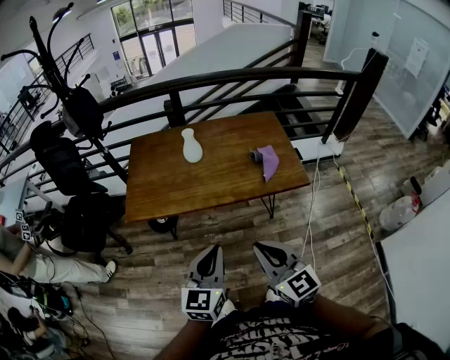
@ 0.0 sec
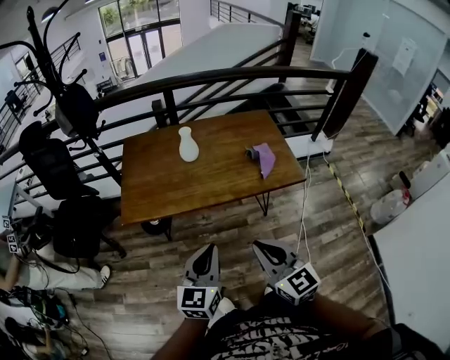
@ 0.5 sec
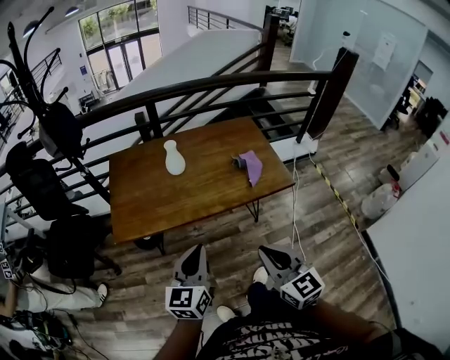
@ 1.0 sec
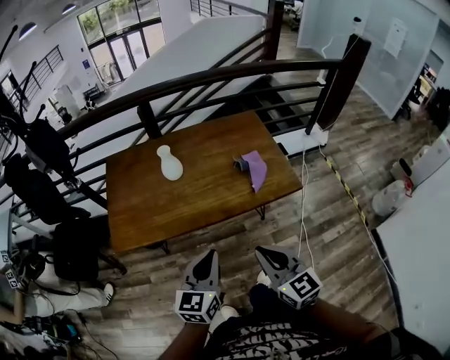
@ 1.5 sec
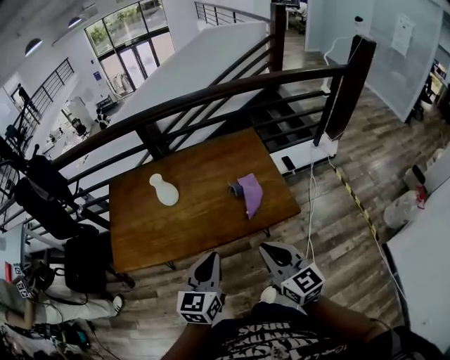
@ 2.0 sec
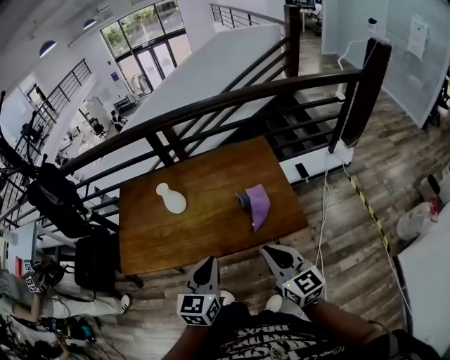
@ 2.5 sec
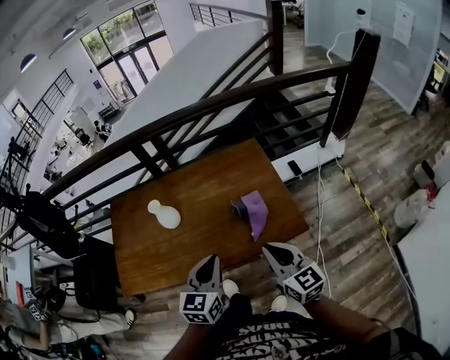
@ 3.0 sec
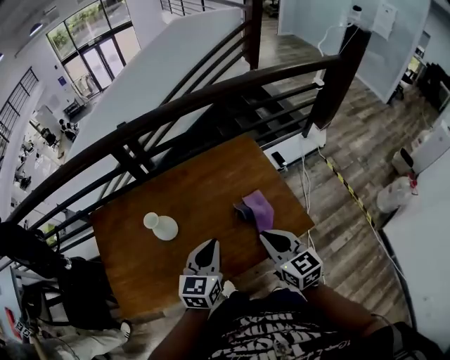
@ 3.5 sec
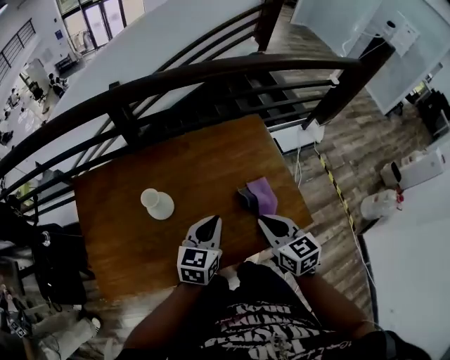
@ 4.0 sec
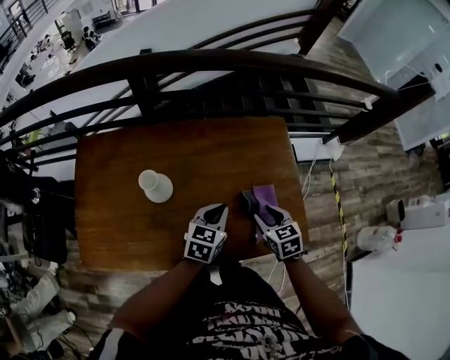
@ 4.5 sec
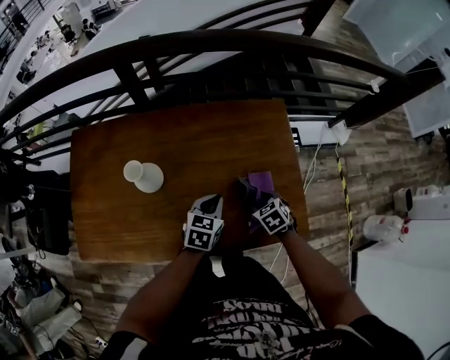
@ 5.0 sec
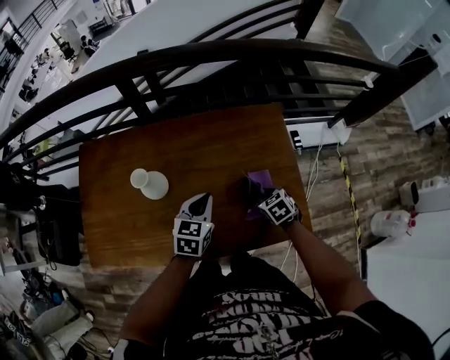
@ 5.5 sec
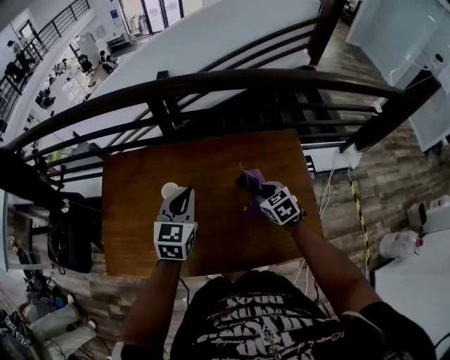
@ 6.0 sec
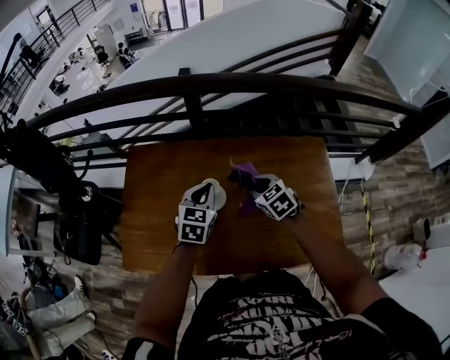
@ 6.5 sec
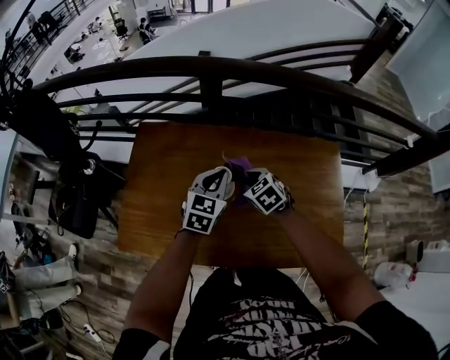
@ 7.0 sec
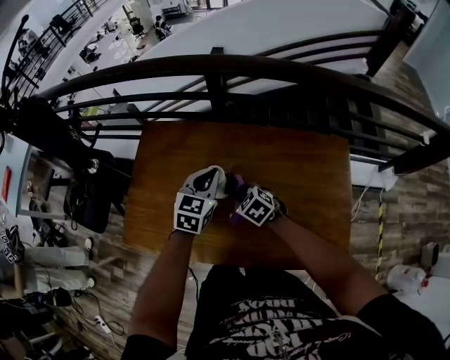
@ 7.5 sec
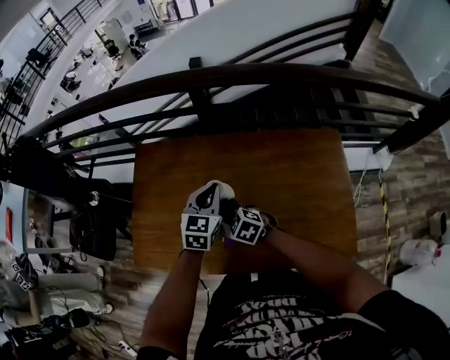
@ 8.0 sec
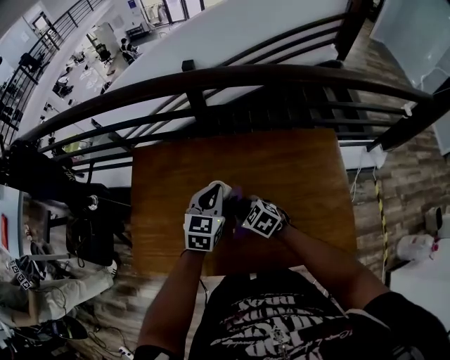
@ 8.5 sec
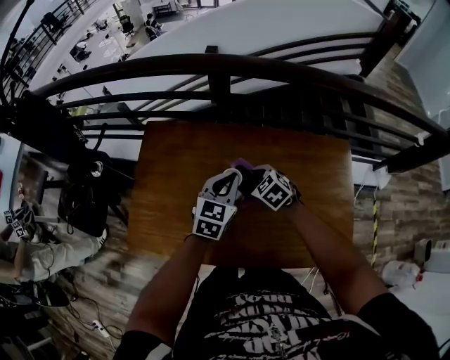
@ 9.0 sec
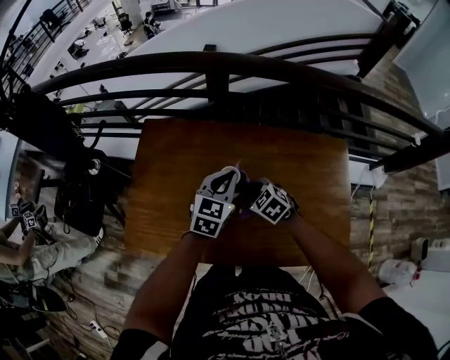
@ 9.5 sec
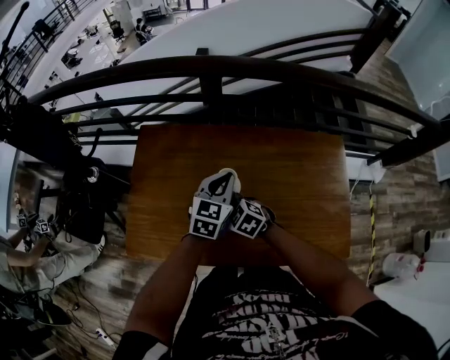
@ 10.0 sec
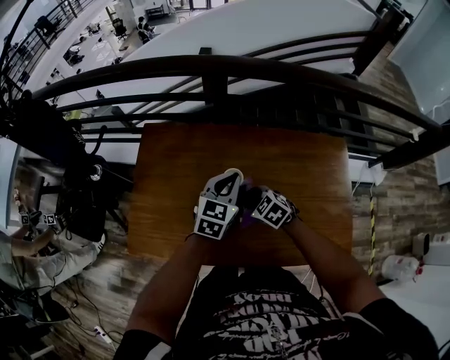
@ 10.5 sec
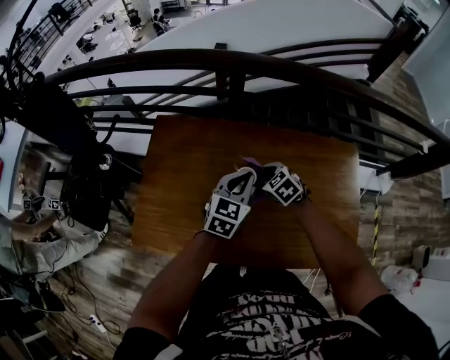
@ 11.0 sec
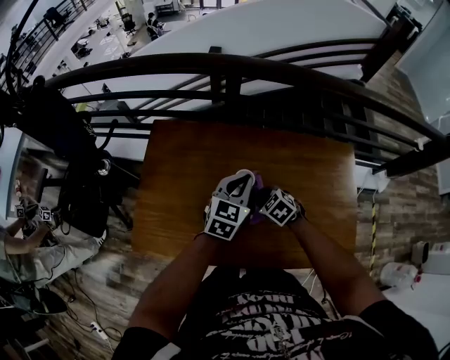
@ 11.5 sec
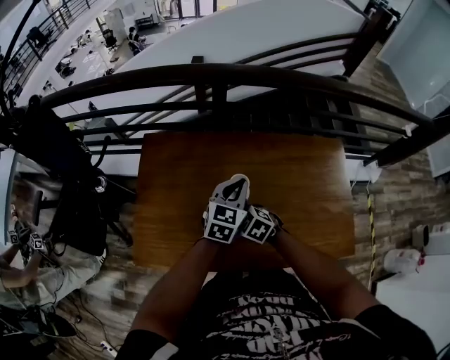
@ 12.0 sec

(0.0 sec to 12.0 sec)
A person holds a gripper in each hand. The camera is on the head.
0.0 sec - 2.0 sec: Both grippers travel together forward and to the right, some 20 cm.
2.0 sec - 4.0 sec: Both grippers move forward, about 25 cm. The right gripper turns by roughly 20 degrees.
4.0 sec - 6.0 sec: The left gripper heads to the left and forward, covering approximately 15 cm, travels downward and back again, approximately 15 cm each way, and swivels some 30 degrees. Meanwhile the right gripper travels forward and downward by approximately 20 cm, turns by about 30 degrees, and opens, then closes again.
6.0 sec - 8.0 sec: The left gripper travels to the left, forward and downward by some 10 cm, while the right gripper heads to the left, covering some 30 cm, and turns by about 40 degrees.
8.0 sec - 10.0 sec: The right gripper moves approximately 10 cm to the right and comes back.
10.0 sec - 12.0 sec: The right gripper reaches about 10 cm to the right, then returns.

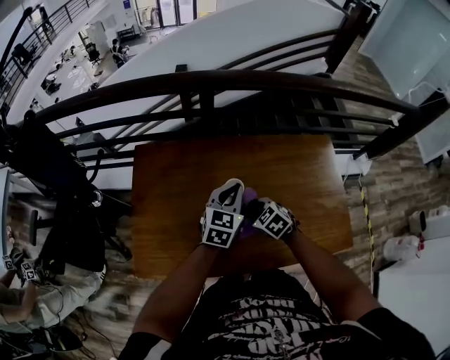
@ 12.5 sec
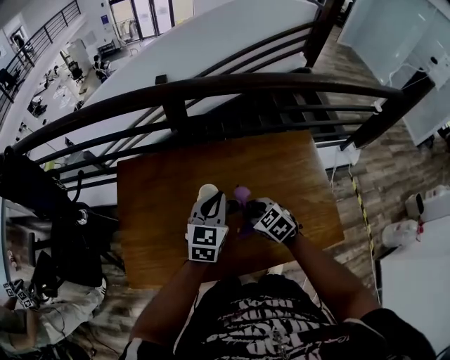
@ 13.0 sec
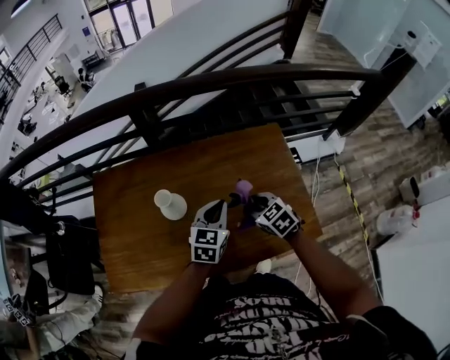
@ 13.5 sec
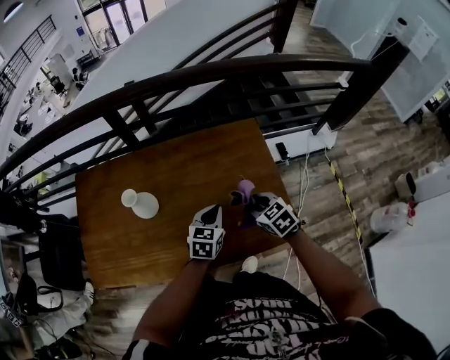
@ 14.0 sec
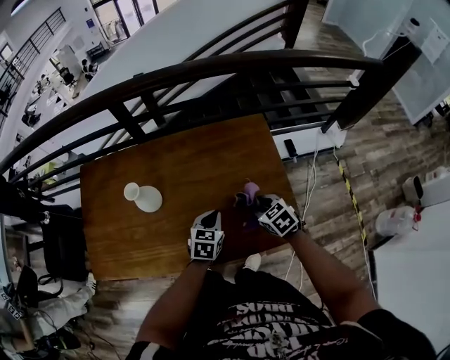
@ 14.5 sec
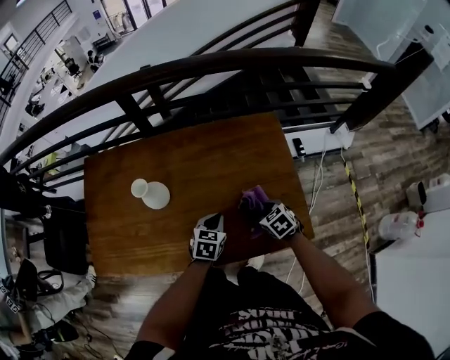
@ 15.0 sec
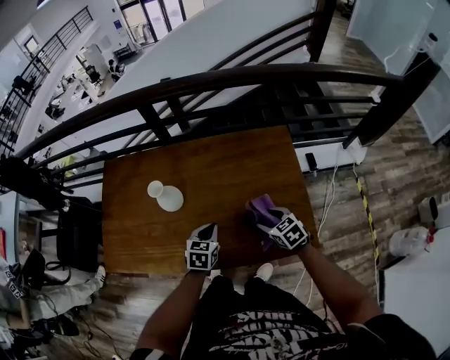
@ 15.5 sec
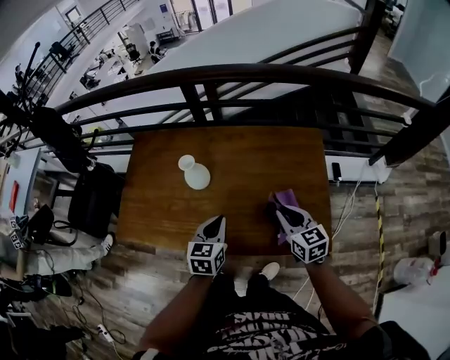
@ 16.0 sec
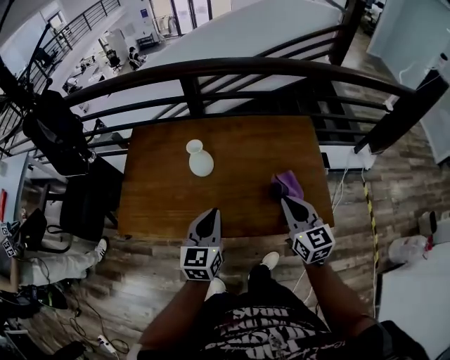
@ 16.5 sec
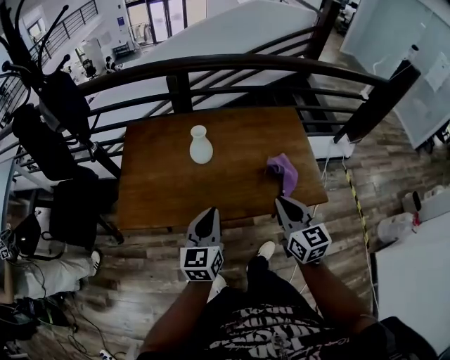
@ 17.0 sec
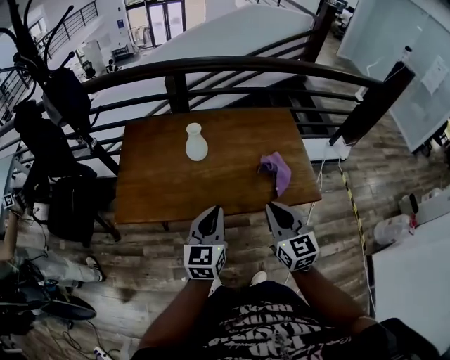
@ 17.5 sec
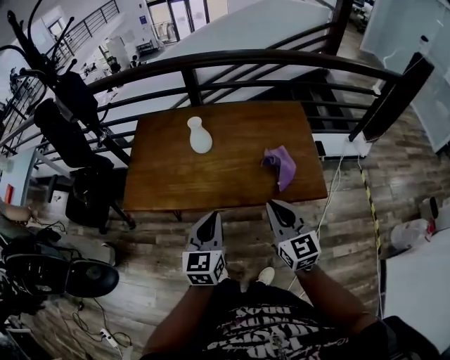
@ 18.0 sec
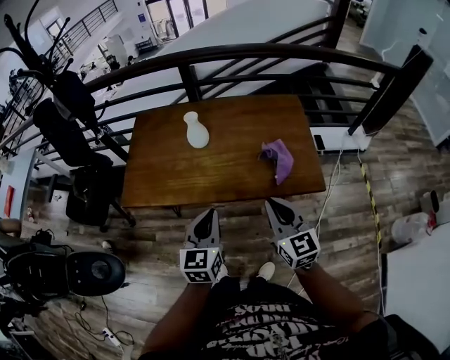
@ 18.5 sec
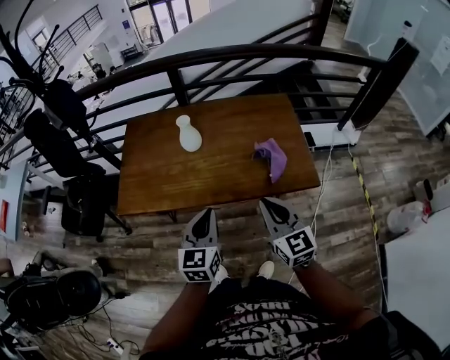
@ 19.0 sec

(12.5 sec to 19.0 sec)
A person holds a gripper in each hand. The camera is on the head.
12.5 sec - 14.5 sec: The right gripper heads to the right, covering about 35 cm, while the left gripper moves to the right, downward and backward, approximately 30 cm.
14.5 sec - 17.0 sec: The left gripper travels to the left, backward and upward by approximately 35 cm, and turns by roughly 30 degrees. The right gripper moves upward, backward and to the left, approximately 35 cm, angles its fingers upward, by about 40 degrees, and opens, then closes once more.
17.0 sec - 19.0 sec: The right gripper goes approximately 10 cm backward; the left gripper is displaced backward and to the right by some 10 cm.

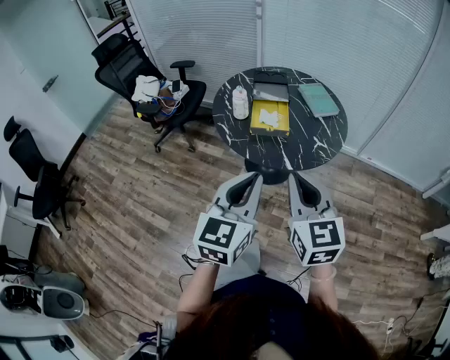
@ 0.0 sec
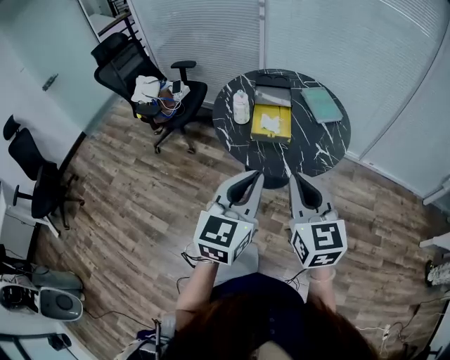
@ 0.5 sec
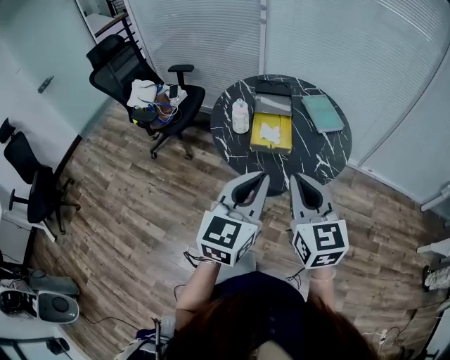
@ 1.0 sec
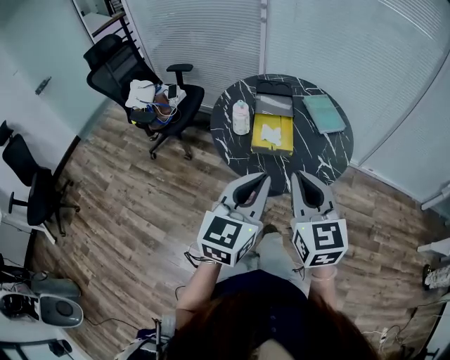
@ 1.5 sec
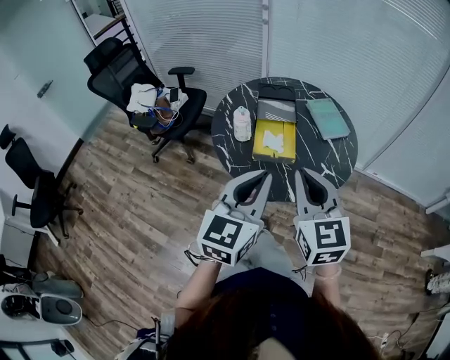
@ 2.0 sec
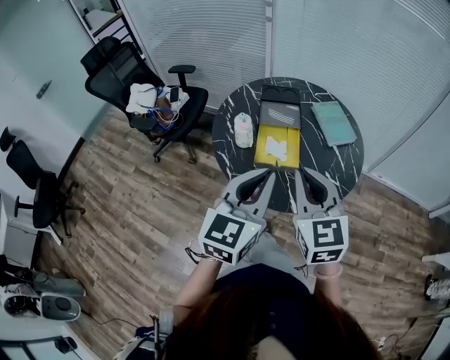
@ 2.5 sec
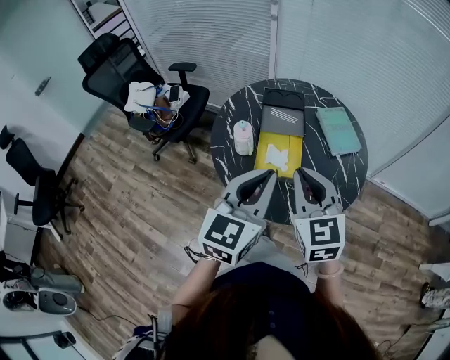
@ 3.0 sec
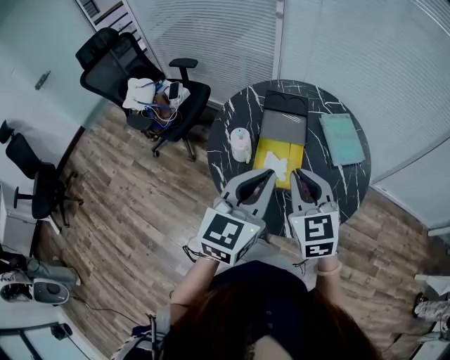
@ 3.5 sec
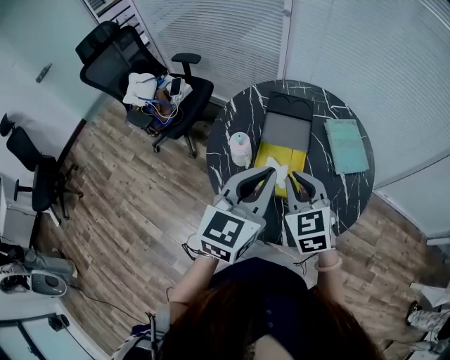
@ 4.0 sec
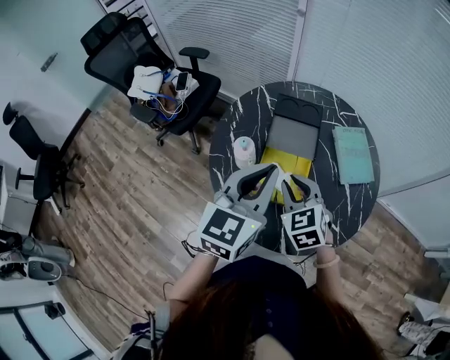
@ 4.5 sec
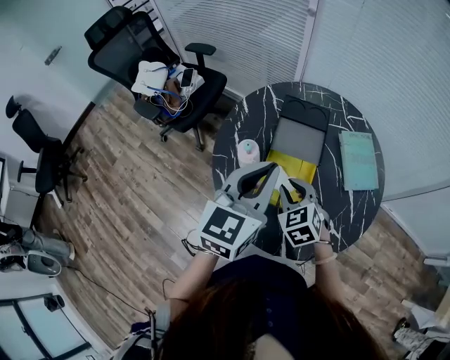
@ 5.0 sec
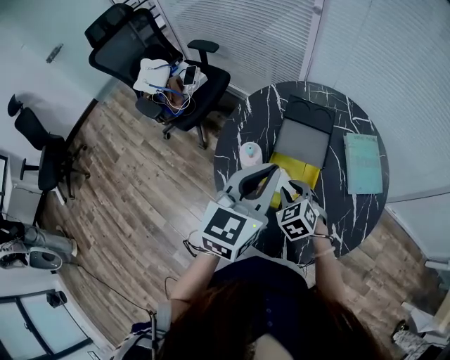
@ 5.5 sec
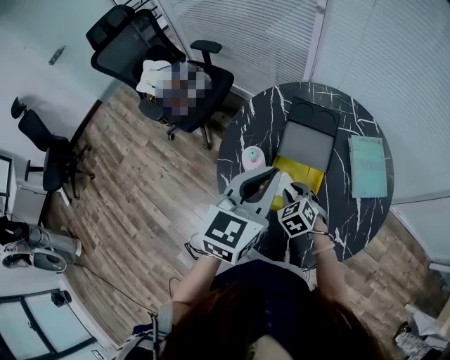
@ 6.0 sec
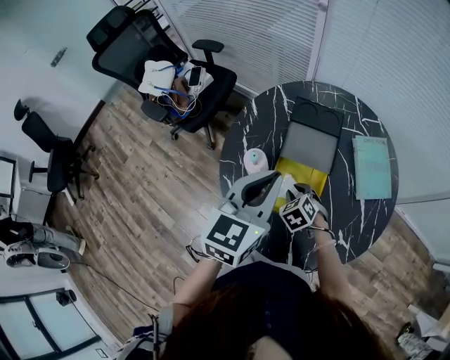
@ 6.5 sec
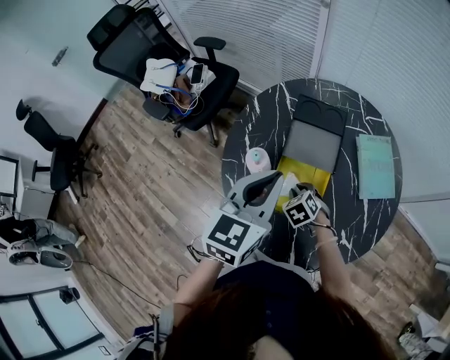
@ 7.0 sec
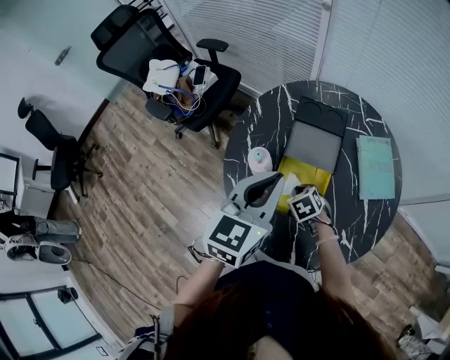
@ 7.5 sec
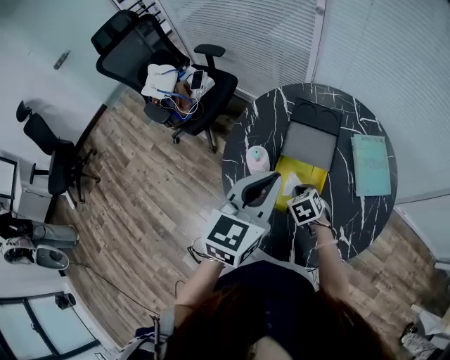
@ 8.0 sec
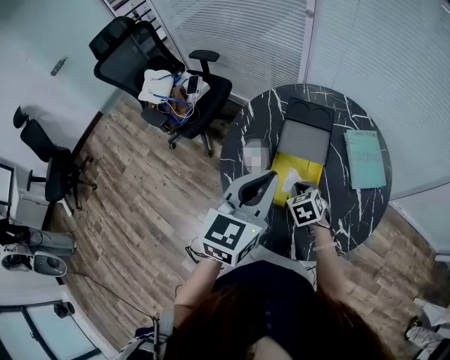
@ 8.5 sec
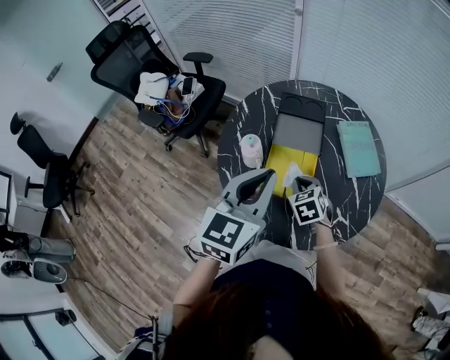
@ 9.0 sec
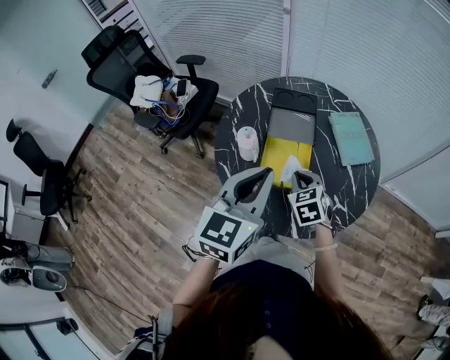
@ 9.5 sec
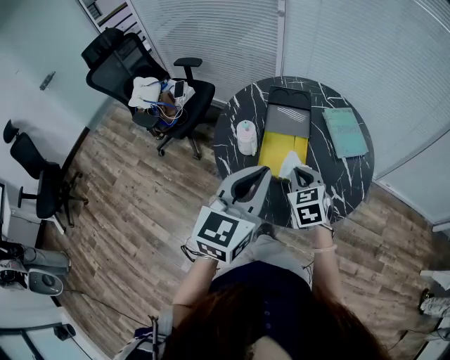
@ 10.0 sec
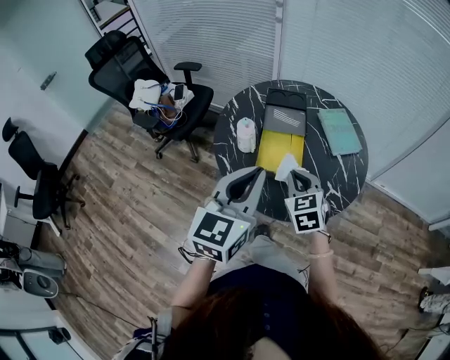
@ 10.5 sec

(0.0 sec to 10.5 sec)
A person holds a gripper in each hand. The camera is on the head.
0.0 sec - 2.0 sec: The grippers both shift forward by approximately 15 cm.
2.0 sec - 4.0 sec: The left gripper shifts approximately 20 cm forward, while the right gripper heads forward and downward, covering roughly 25 cm, and turns by approximately 20 degrees.
4.0 sec - 6.5 sec: The right gripper is displaced downward by some 25 cm, and tips its fingers downward by approximately 30 degrees, while the left gripper is displaced forward by approximately 10 cm.
6.5 sec - 8.5 sec: The right gripper changes place by some 5 cm; the left gripper ends up about 5 cm from where it was.
8.5 sec - 10.5 sec: The left gripper heads backward, covering approximately 15 cm. Meanwhile the right gripper heads upward and backward, covering roughly 20 cm, and changes its angle by roughly 20 degrees.
